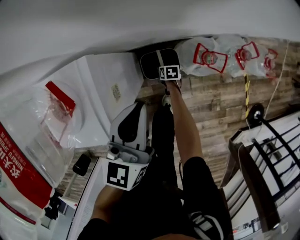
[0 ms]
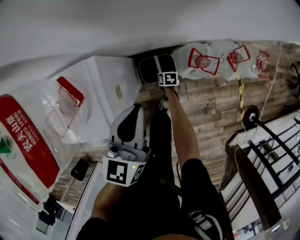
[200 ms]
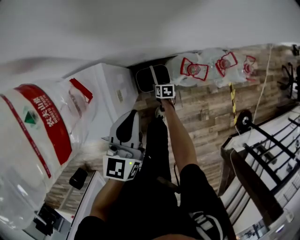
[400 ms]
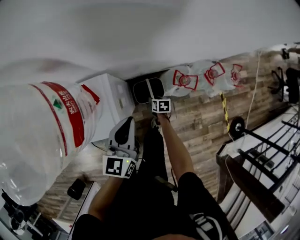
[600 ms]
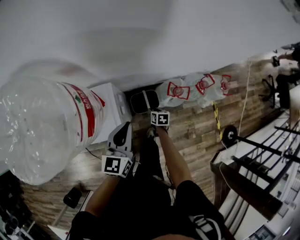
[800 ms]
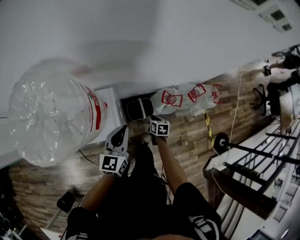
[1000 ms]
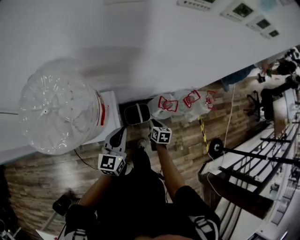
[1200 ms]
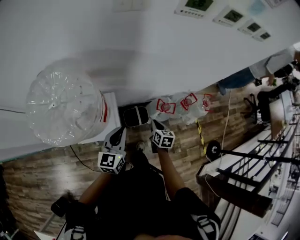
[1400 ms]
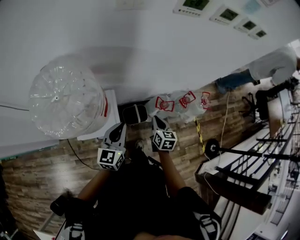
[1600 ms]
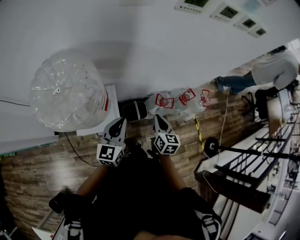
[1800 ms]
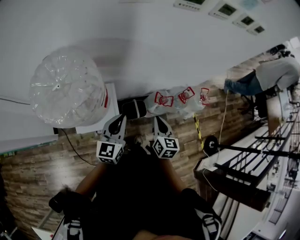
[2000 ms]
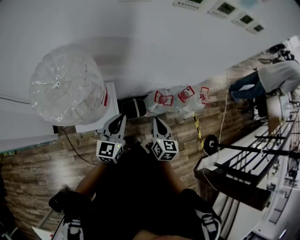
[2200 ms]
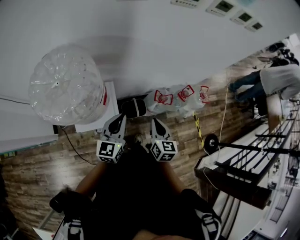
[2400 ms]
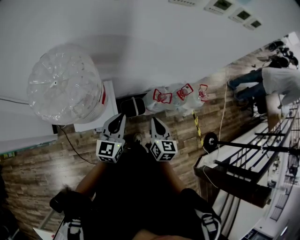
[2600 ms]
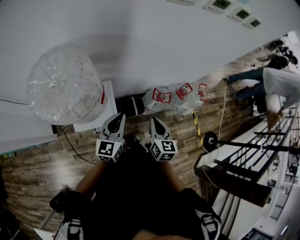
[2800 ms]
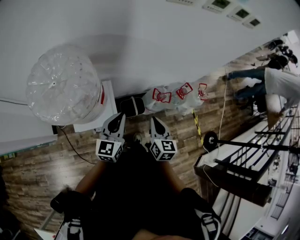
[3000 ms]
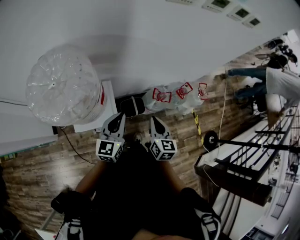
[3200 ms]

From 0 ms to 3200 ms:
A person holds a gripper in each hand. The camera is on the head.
From 0 ms to 1600 ms: The left gripper goes approximately 20 cm upward, while the right gripper moves upward, about 60 cm, tips its fingers upward by approximately 30 degrees, and closes its fingers.
From 1600 ms to 3200 ms: The right gripper moves upward and backward, roughly 10 cm.

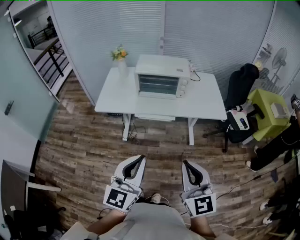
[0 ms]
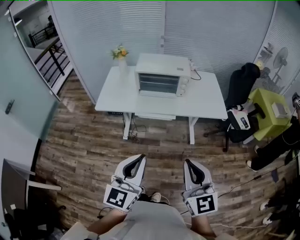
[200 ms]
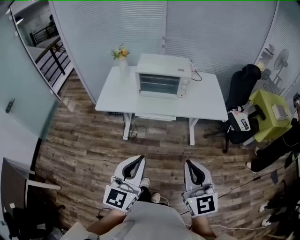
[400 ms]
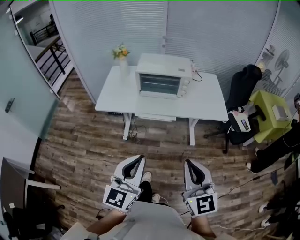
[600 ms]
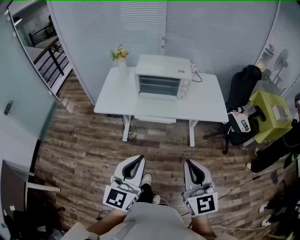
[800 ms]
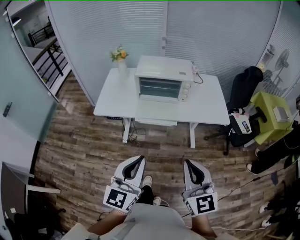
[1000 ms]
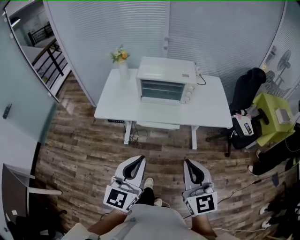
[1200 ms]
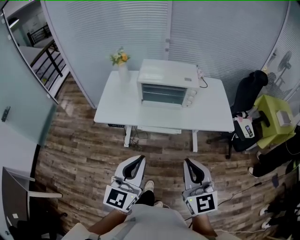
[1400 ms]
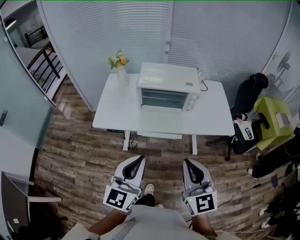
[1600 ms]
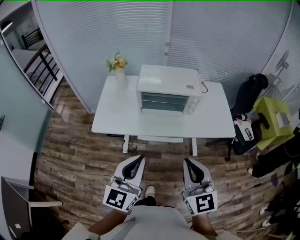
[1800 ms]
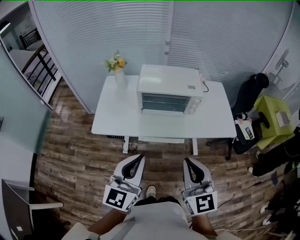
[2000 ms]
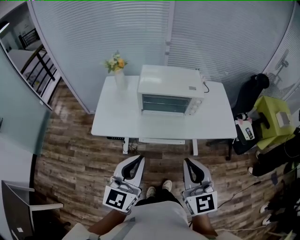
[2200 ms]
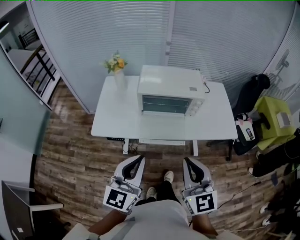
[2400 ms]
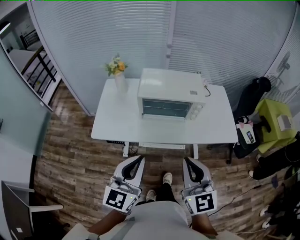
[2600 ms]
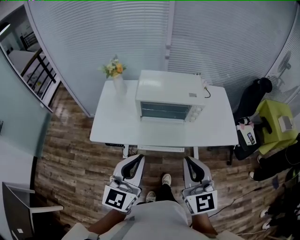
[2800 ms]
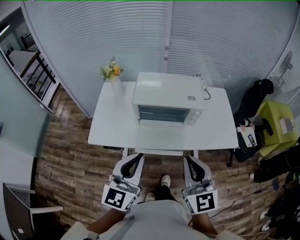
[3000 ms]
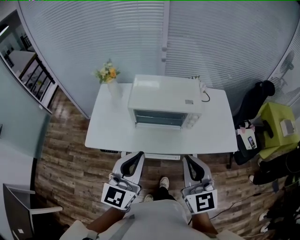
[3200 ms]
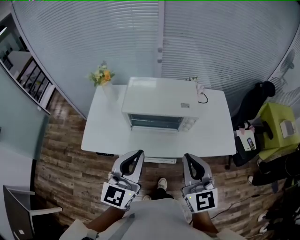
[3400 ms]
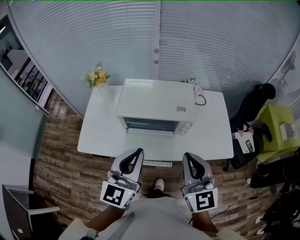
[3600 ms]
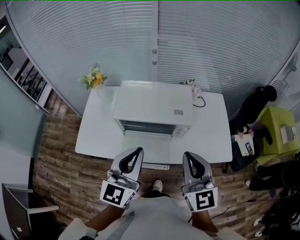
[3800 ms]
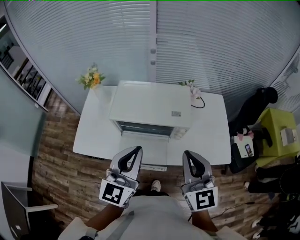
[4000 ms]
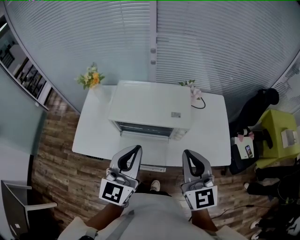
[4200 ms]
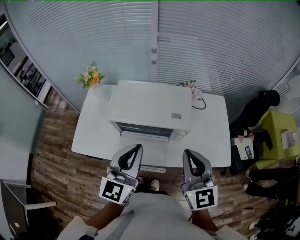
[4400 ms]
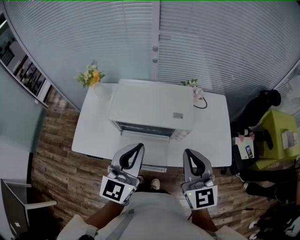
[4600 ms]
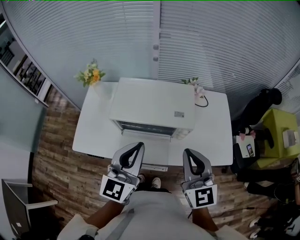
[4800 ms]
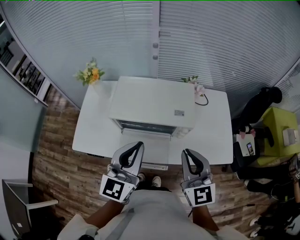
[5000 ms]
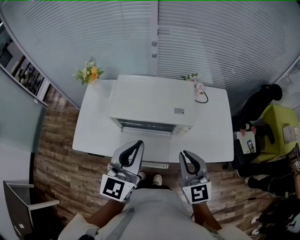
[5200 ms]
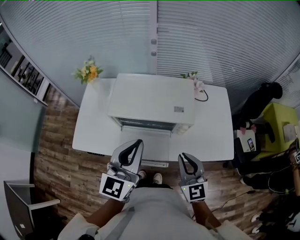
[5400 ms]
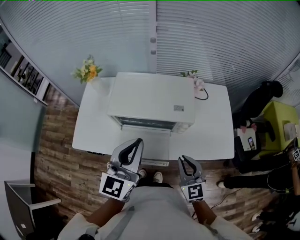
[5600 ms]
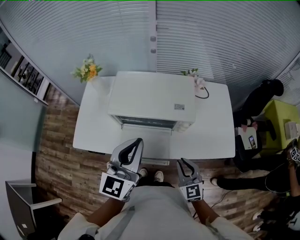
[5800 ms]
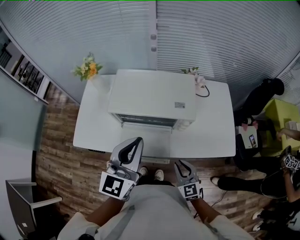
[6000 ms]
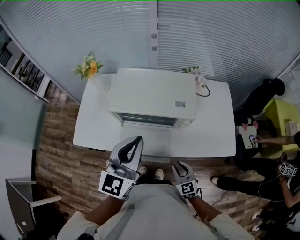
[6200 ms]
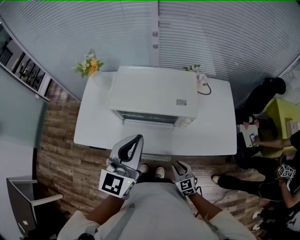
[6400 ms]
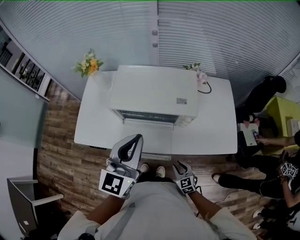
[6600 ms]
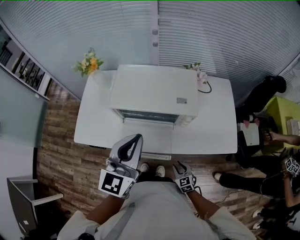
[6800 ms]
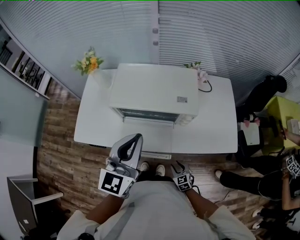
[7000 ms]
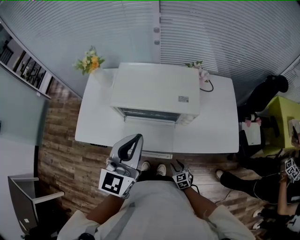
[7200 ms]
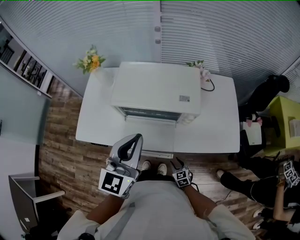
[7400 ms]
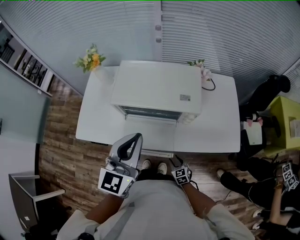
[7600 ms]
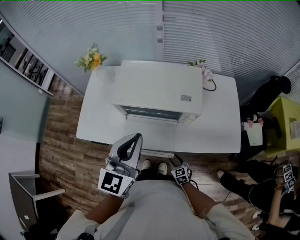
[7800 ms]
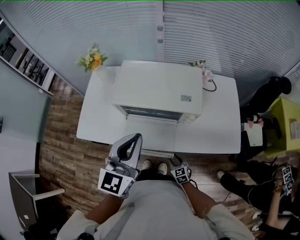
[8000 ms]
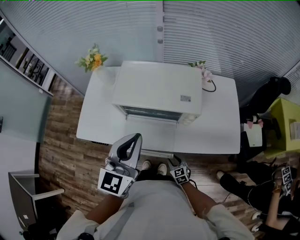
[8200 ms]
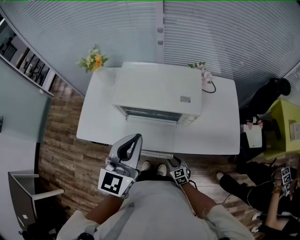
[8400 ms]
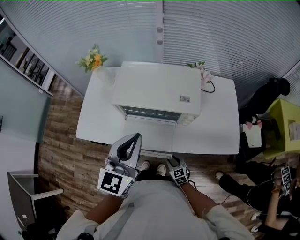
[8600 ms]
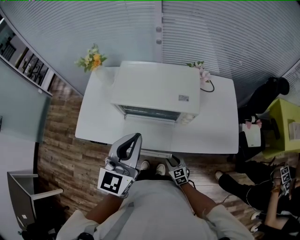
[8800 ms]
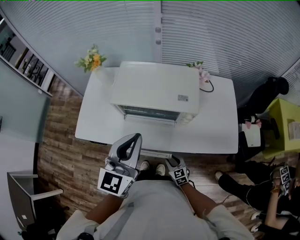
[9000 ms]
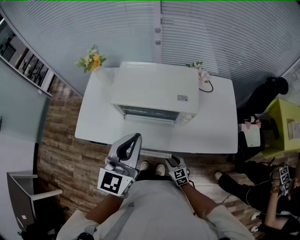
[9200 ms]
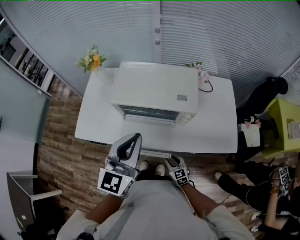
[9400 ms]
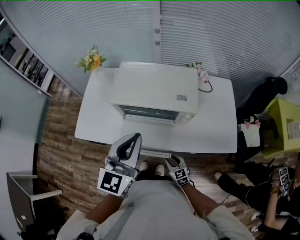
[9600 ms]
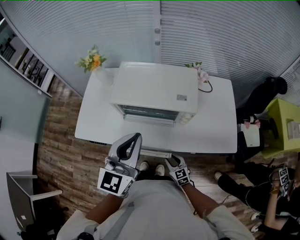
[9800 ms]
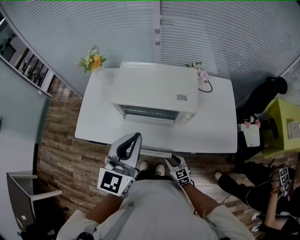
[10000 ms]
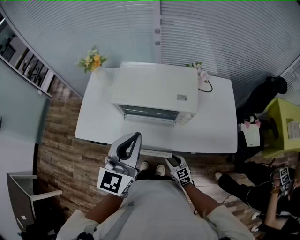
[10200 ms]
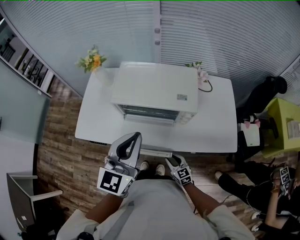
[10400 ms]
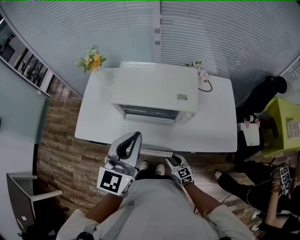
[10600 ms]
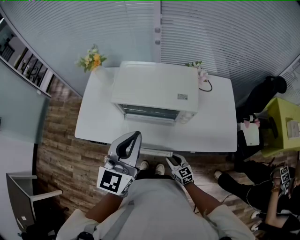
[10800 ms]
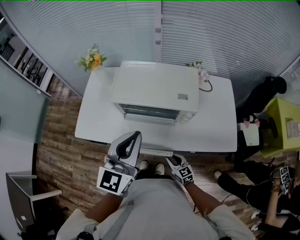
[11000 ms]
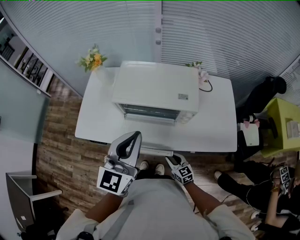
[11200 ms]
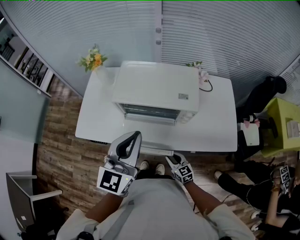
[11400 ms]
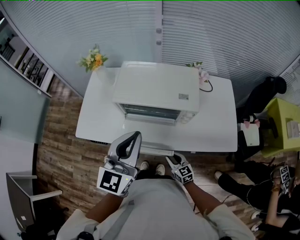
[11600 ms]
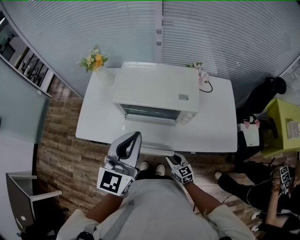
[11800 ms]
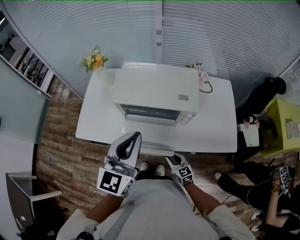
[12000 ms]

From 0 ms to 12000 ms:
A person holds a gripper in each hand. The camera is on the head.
From 0 ms to 1600 ms: The two grippers go roughly 20 cm forward.
From 1600 ms to 3000 ms: Both grippers move forward, approximately 15 cm.
From 3000 ms to 4400 ms: Both grippers move forward and to the right, roughly 20 cm.
From 4400 ms to 6000 ms: The right gripper shifts approximately 25 cm downward.
From 6000 ms to 7600 ms: The right gripper heads downward, covering approximately 25 cm, swivels about 20 degrees, and opens.
From 7600 ms to 9000 ms: The grippers make only small movements.
From 9000 ms to 10400 ms: The grippers move only a little.
From 10400 ms to 12000 ms: There are only small adjustments of the grippers.

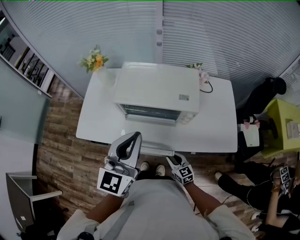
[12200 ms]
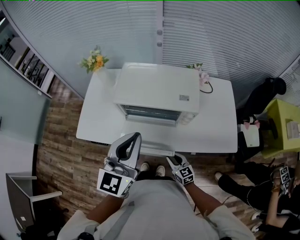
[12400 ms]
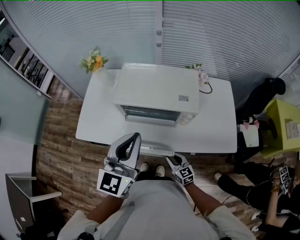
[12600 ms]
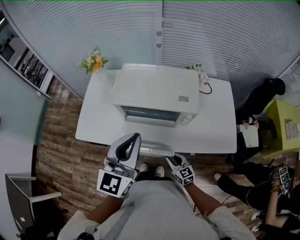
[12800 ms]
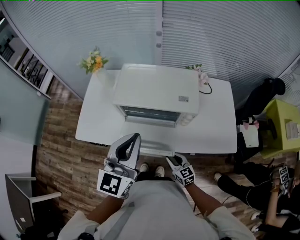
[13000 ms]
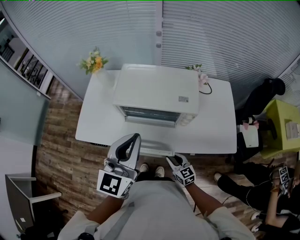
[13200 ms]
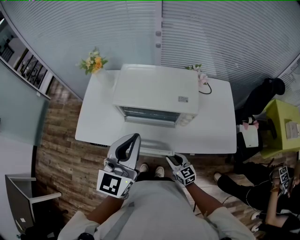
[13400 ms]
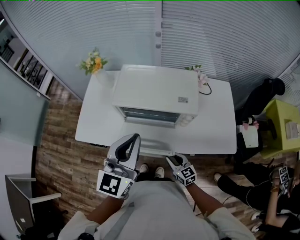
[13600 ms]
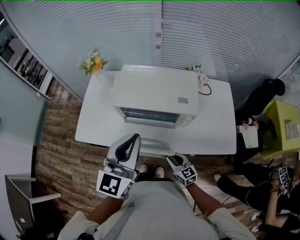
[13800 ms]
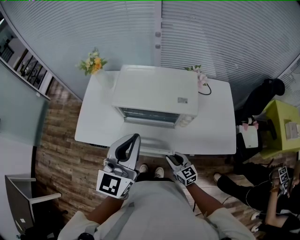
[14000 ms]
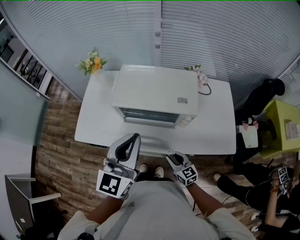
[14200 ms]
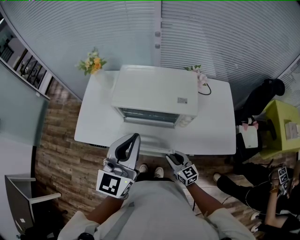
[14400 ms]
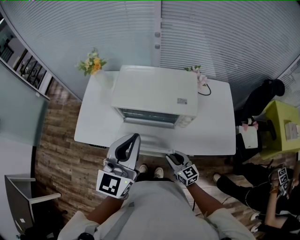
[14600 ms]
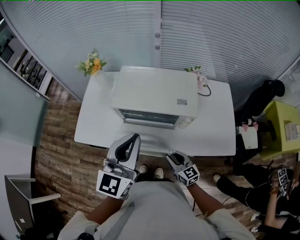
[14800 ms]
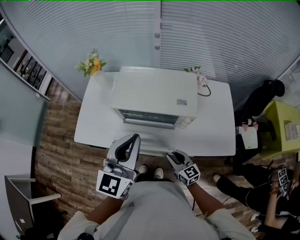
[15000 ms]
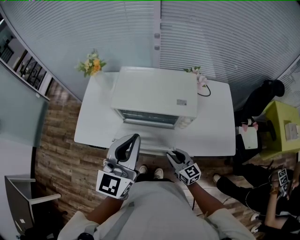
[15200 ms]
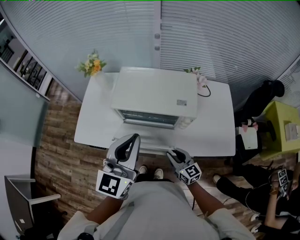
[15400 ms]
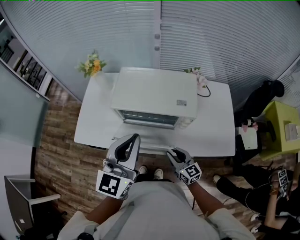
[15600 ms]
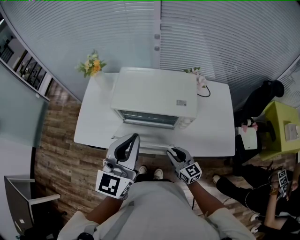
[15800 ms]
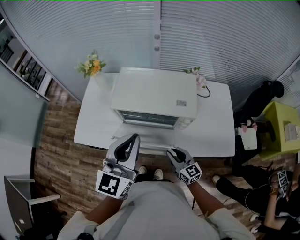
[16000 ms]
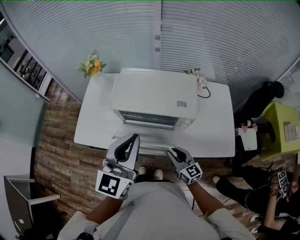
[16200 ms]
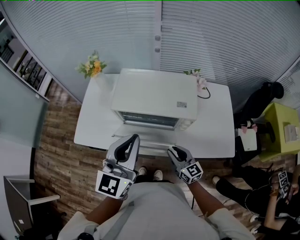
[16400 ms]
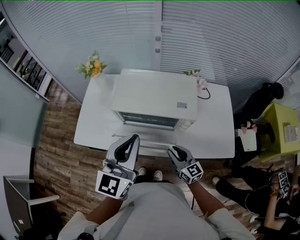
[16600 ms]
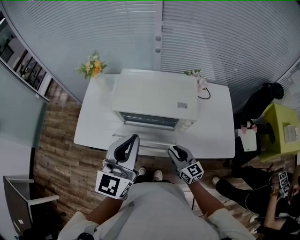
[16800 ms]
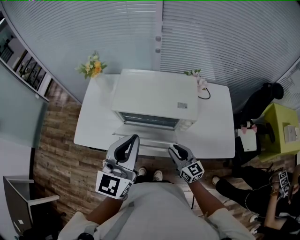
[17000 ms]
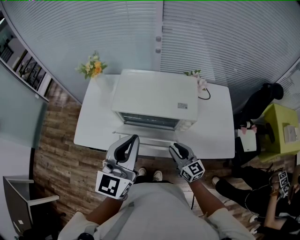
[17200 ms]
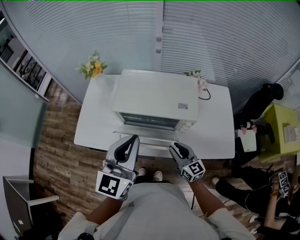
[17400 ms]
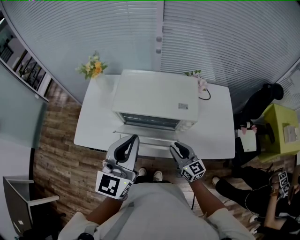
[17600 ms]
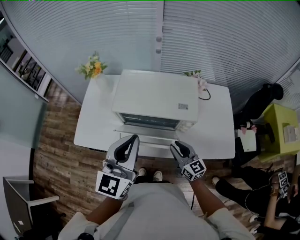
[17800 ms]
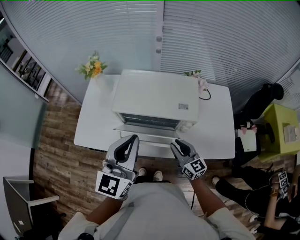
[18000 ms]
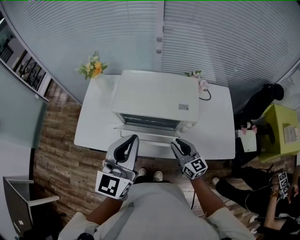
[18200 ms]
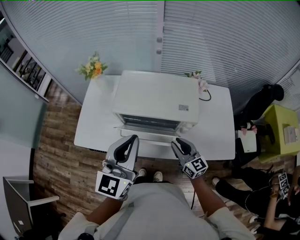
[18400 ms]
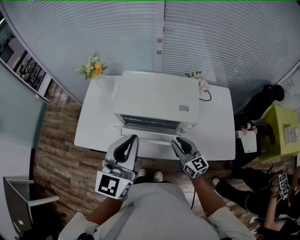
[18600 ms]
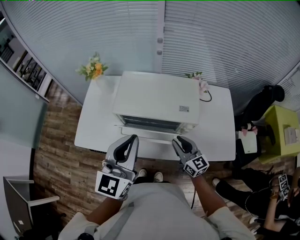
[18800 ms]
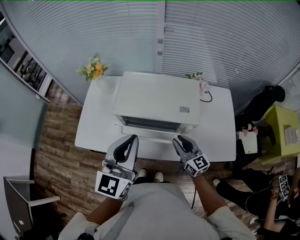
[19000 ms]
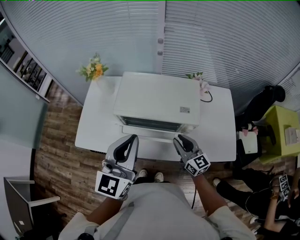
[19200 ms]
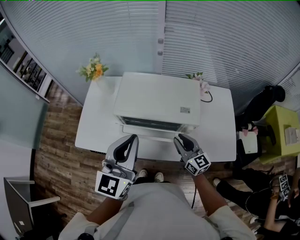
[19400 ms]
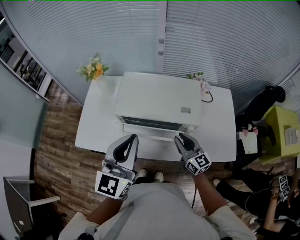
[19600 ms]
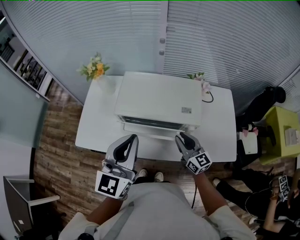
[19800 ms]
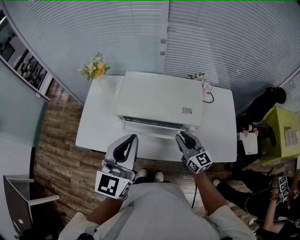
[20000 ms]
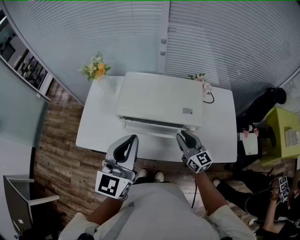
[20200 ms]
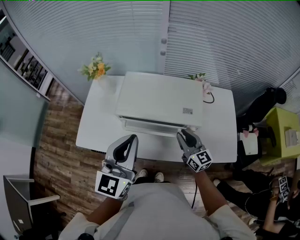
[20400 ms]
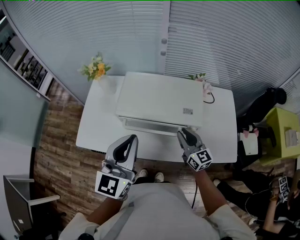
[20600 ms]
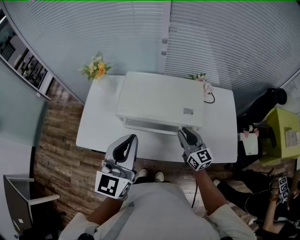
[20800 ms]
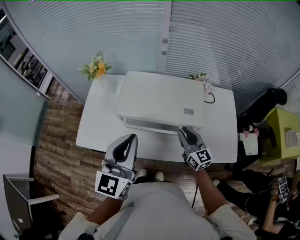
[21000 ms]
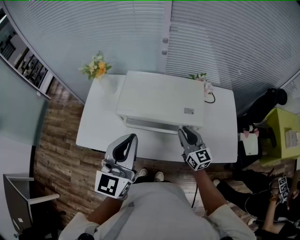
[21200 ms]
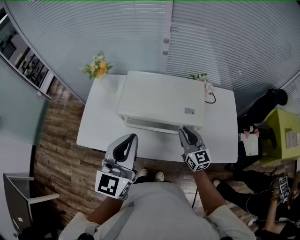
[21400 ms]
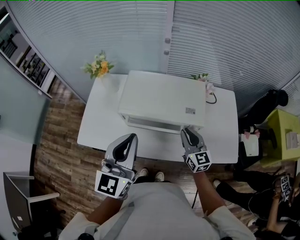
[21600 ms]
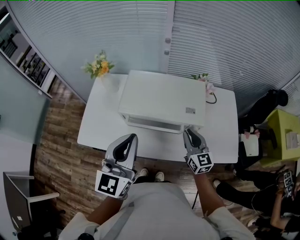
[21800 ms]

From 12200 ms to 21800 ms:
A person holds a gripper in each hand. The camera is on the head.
From 12200 ms to 13800 ms: The grippers stay close to where they were, moving slightly.
From 13800 ms to 15400 ms: The right gripper travels upward by roughly 5 cm.
From 15400 ms to 17000 ms: There are only small adjustments of the grippers.
From 17000 ms to 18600 ms: The right gripper shifts by about 5 cm.
From 18600 ms to 20200 ms: There are only small adjustments of the grippers.
From 20200 ms to 21800 ms: The grippers make only small movements.
